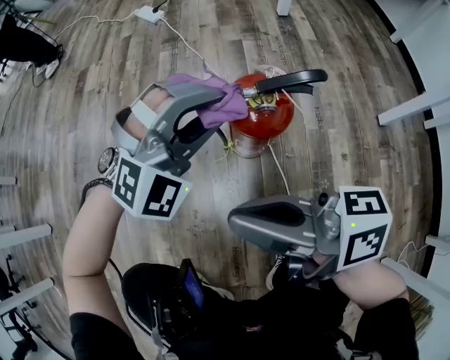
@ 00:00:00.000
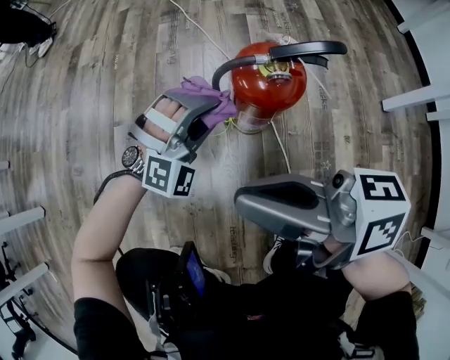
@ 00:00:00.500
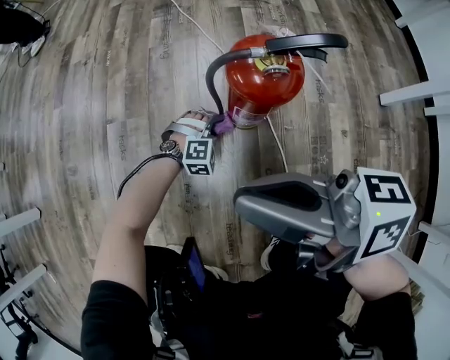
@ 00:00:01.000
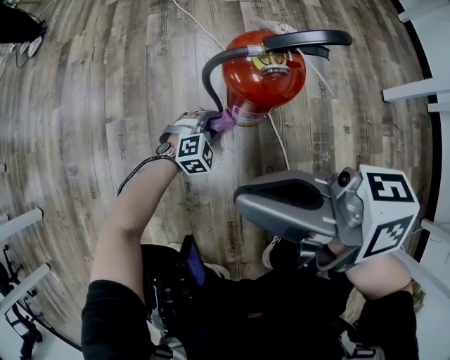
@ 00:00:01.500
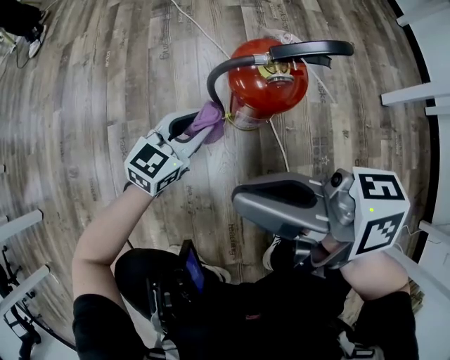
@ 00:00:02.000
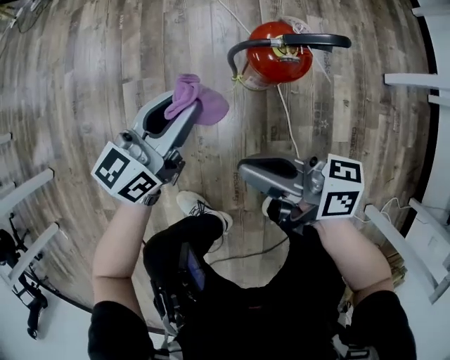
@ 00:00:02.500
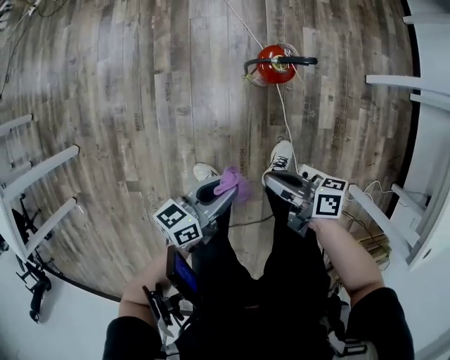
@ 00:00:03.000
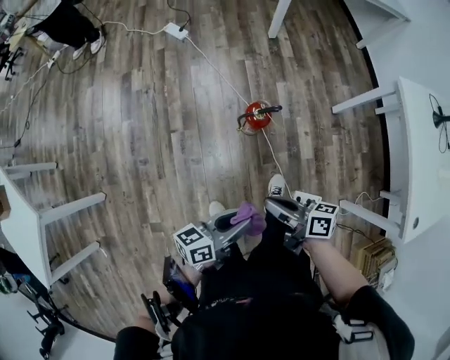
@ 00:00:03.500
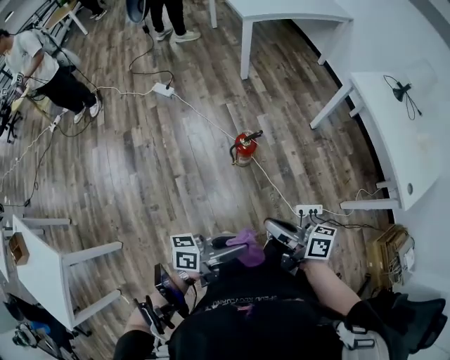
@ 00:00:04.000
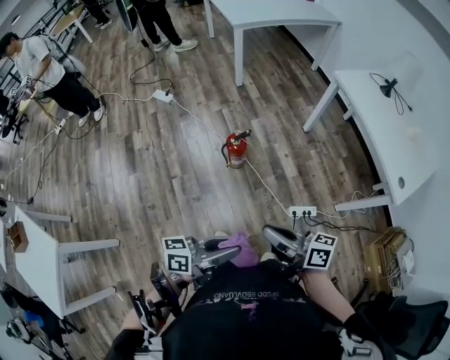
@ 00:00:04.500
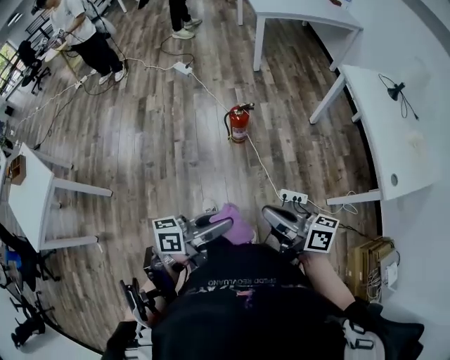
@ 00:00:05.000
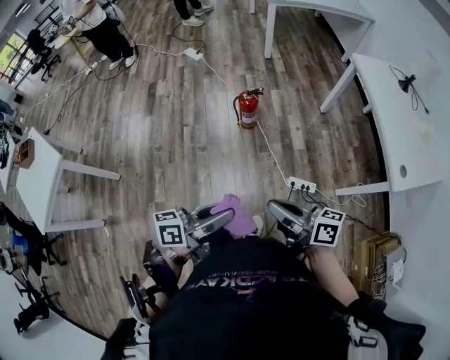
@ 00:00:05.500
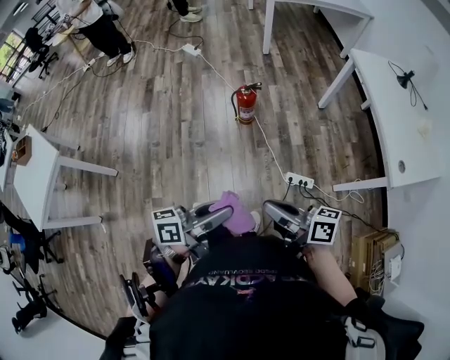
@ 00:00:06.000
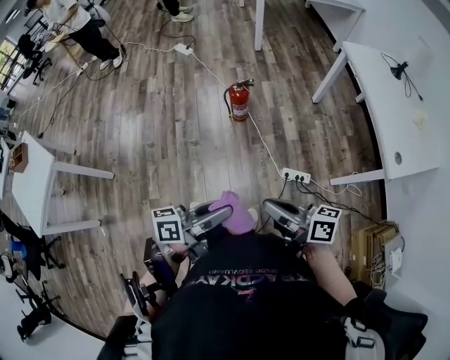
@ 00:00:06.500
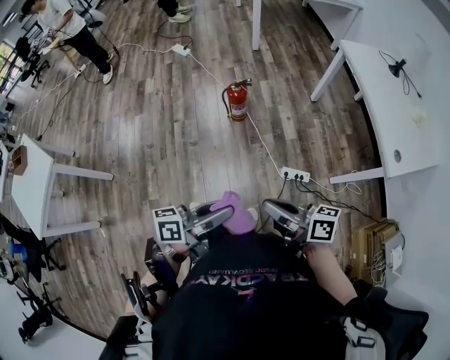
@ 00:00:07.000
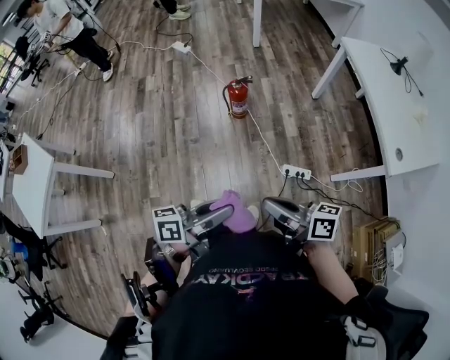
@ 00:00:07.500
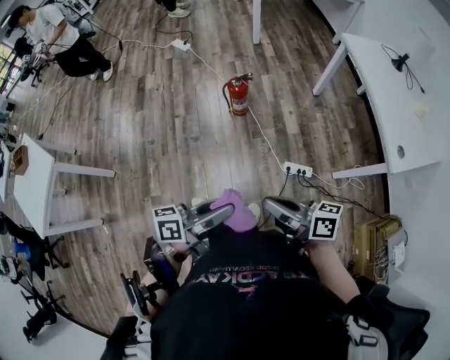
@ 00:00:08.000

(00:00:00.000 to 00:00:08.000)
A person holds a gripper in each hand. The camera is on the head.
00:00:00.000 - 00:00:02.000: The left gripper is displaced downward by about 20 cm, and rolls counterclockwise, seen from behind, by roughly 70 degrees.
00:00:02.000 - 00:00:04.000: The right gripper heads upward, covering about 40 cm, and changes its angle by about 30 degrees. The left gripper heads upward, covering about 60 cm, and changes its angle by about 70 degrees.
00:00:04.000 - 00:00:06.000: Both grippers move backward and to the right, about 25 cm. The left gripper rotates about 20 degrees.
00:00:06.000 - 00:00:08.000: The grippers stay close to where they were, moving slightly.

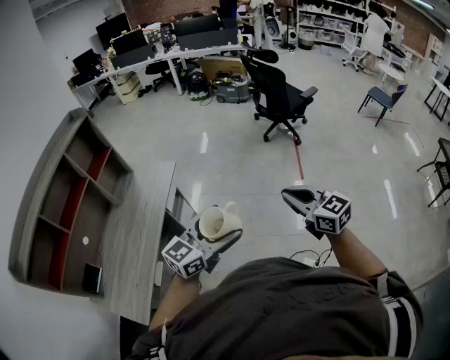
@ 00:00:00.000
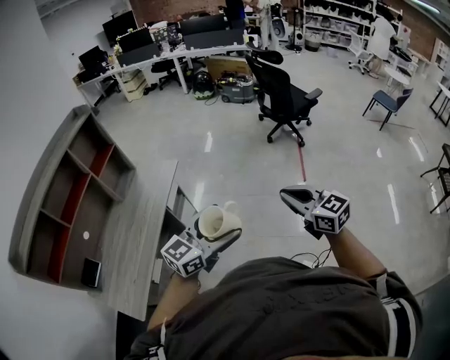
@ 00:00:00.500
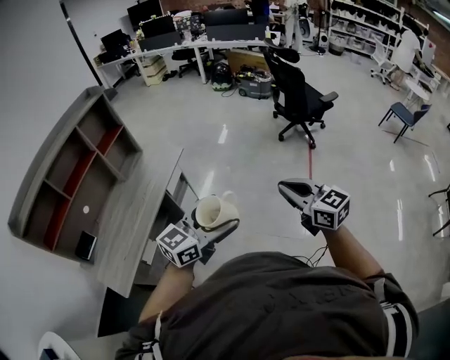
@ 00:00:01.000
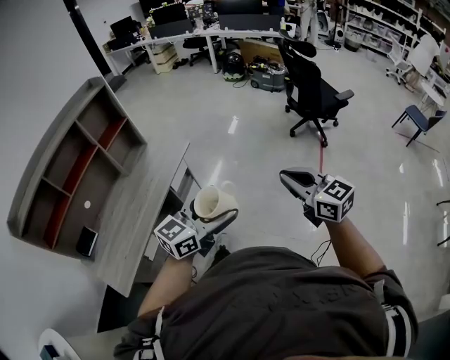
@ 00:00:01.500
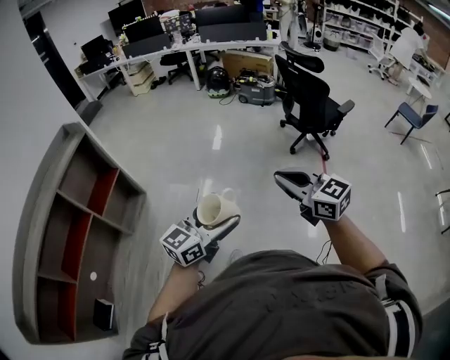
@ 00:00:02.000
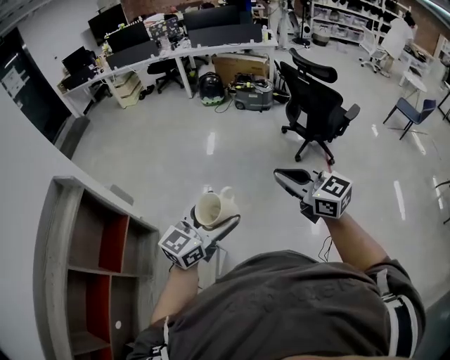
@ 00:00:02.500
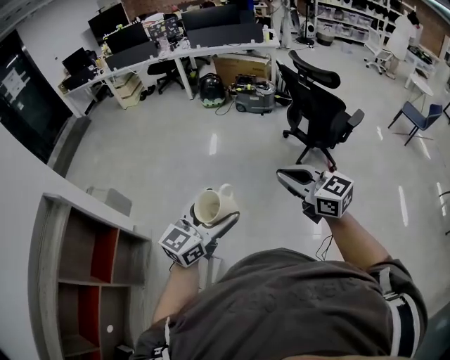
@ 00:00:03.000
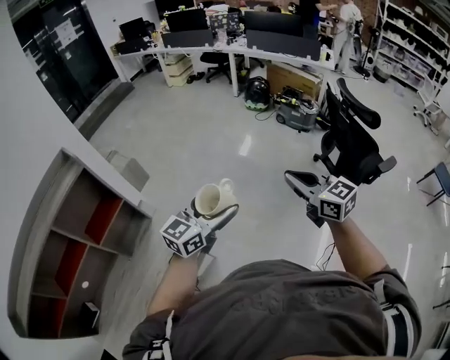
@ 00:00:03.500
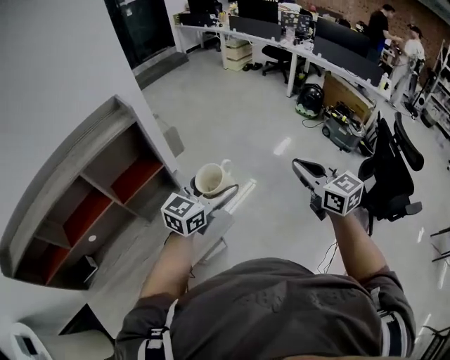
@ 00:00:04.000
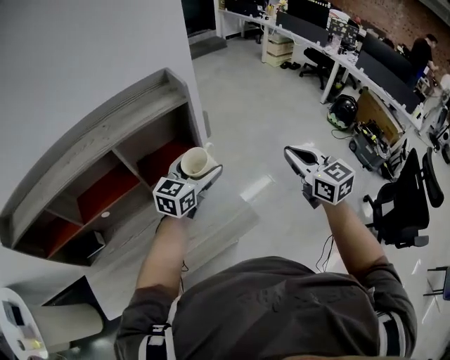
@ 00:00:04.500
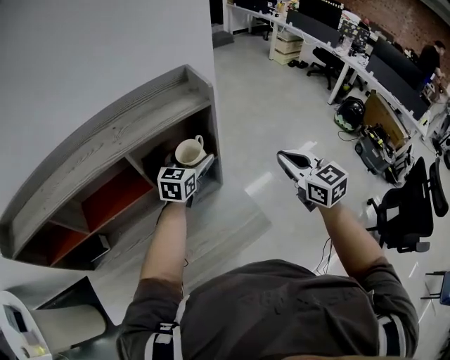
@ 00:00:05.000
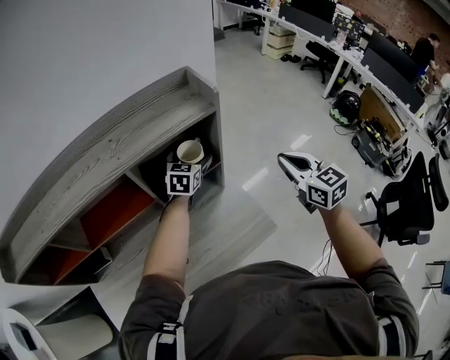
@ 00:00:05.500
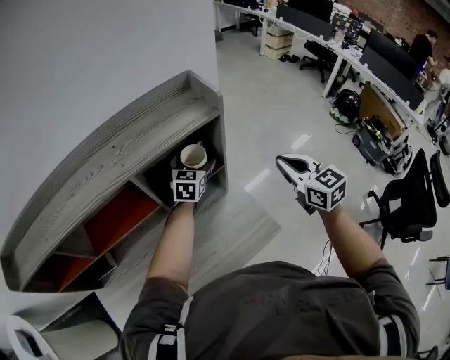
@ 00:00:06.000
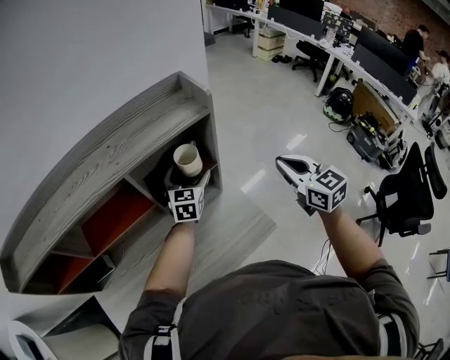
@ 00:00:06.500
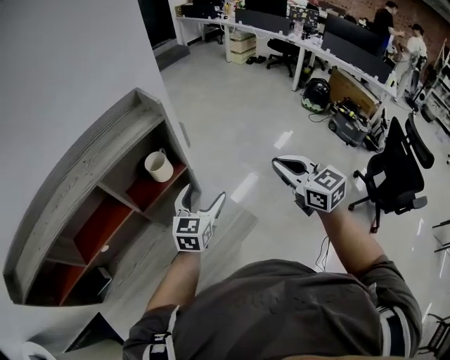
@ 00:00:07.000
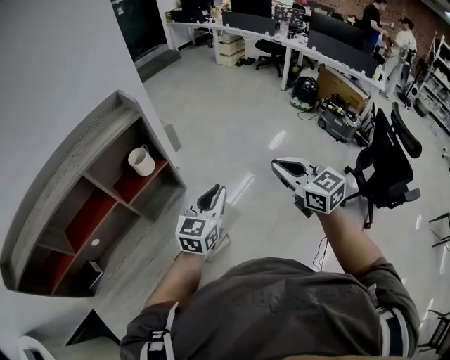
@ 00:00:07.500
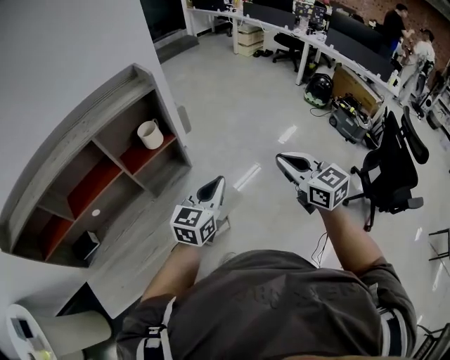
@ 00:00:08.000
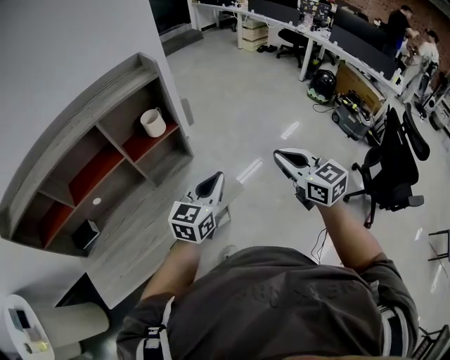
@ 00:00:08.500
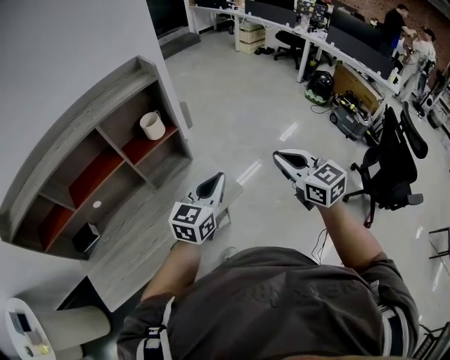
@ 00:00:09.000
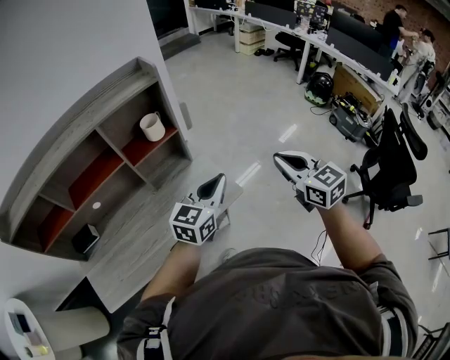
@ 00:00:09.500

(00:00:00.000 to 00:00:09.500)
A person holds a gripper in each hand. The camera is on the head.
00:00:00.000 - 00:00:02.000: The two grippers go roughly 35 cm forward and to the left.
00:00:02.000 - 00:00:04.000: The left gripper shifts by some 35 cm, and rotates some 40 degrees. Meanwhile the right gripper shifts by roughly 40 cm, and swivels roughly 20 degrees.
00:00:04.000 - 00:00:05.500: The grippers both shift to the left and forward by roughly 35 cm. The left gripper swivels approximately 40 degrees.
00:00:05.500 - 00:00:07.500: The right gripper goes about 25 cm backward and to the right, while the left gripper goes some 35 cm backward and to the right, rotates roughly 30 degrees, and closes.
00:00:07.500 - 00:00:09.500: Both grippers travel together backward, about 5 cm.

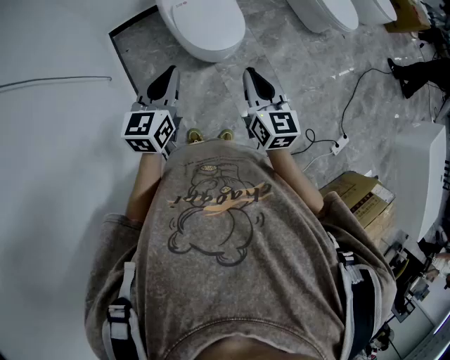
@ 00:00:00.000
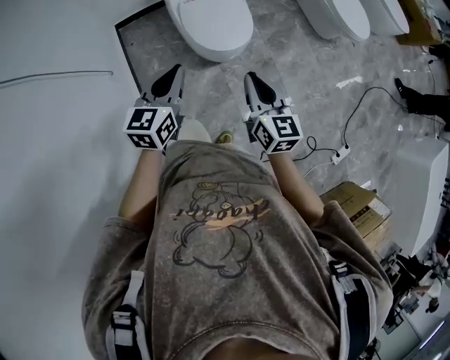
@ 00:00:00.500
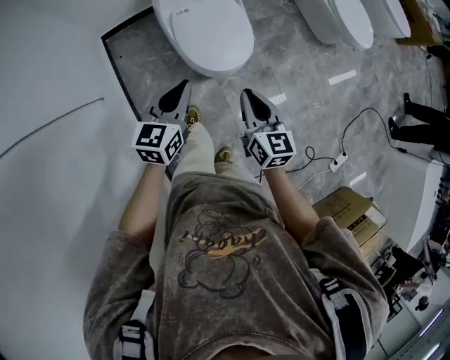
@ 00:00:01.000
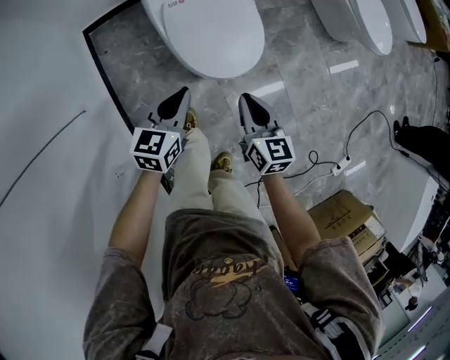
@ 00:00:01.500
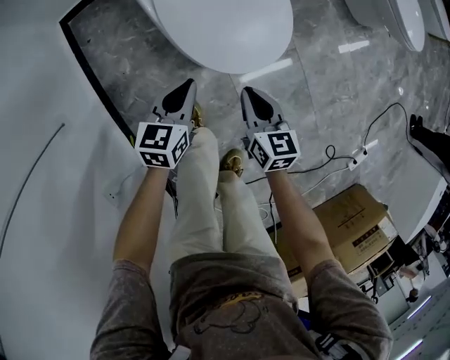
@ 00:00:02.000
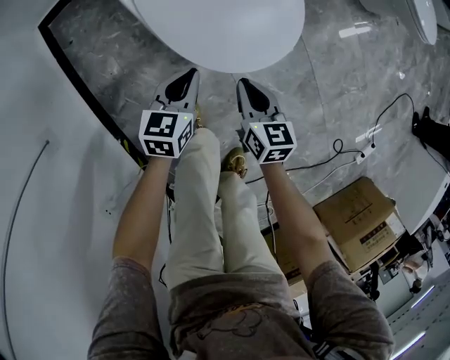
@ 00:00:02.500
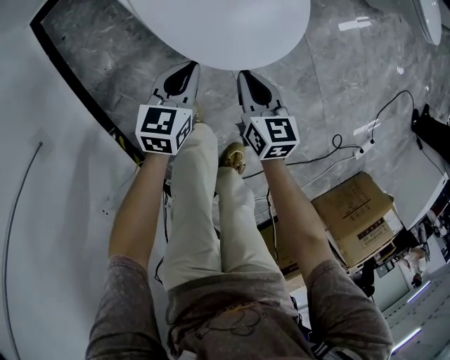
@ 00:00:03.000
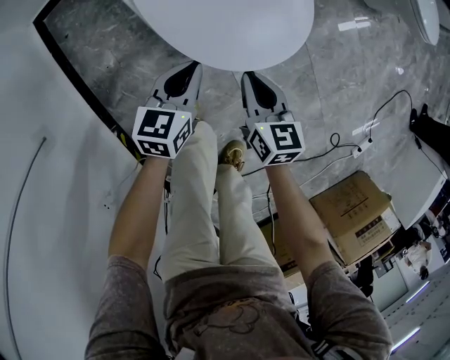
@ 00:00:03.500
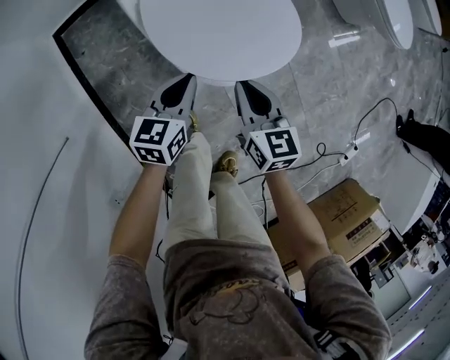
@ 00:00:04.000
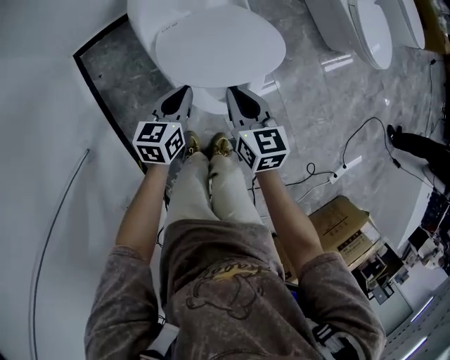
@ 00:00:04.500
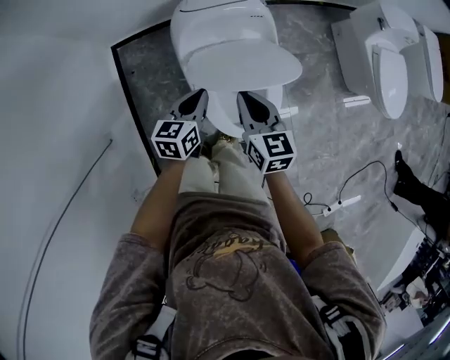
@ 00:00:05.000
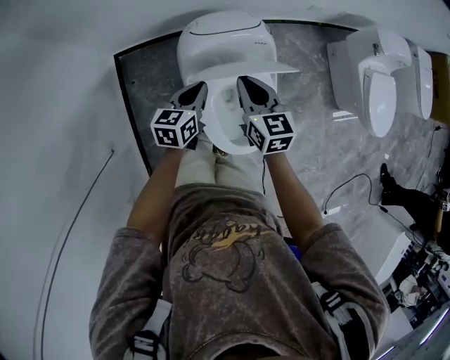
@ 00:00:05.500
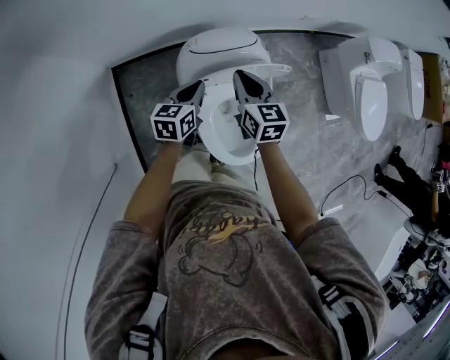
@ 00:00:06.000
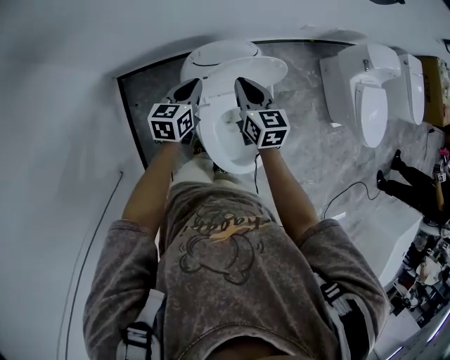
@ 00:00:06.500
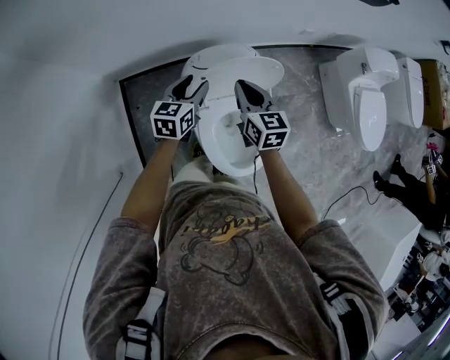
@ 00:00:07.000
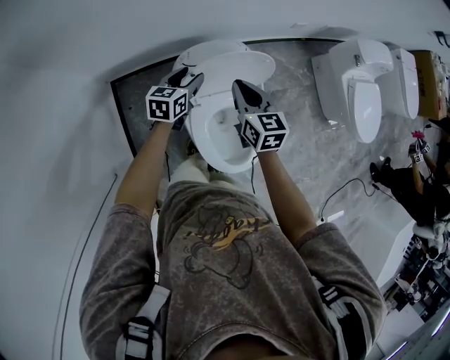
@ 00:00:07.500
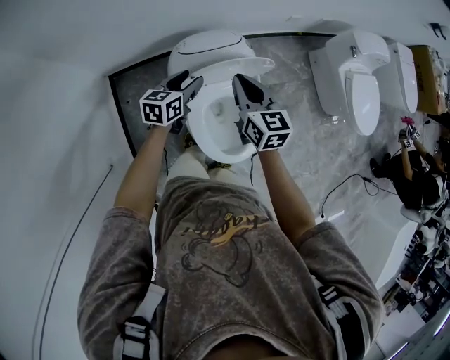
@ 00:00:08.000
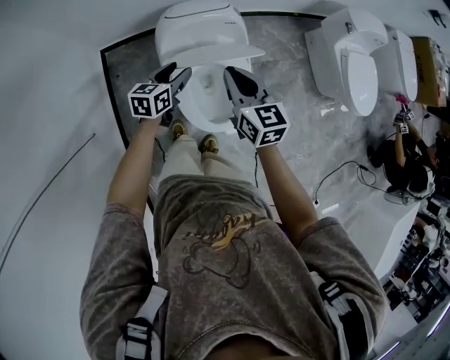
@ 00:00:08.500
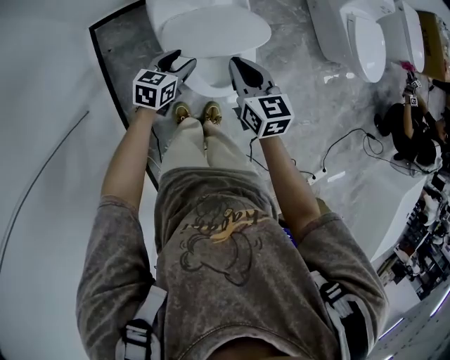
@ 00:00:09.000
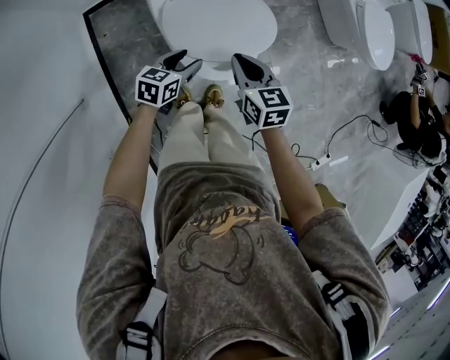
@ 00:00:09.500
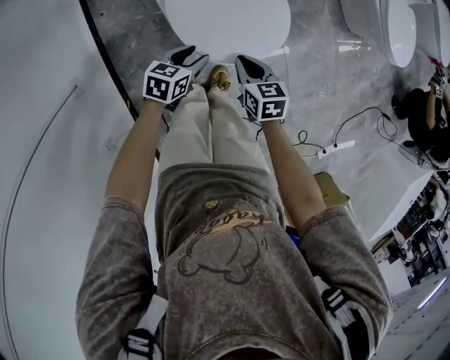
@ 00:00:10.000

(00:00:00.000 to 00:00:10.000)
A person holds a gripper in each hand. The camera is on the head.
00:00:00.000 - 00:00:02.000: The grippers both shift downward and forward by approximately 50 cm. The right gripper swivels approximately 20 degrees, while the left gripper swivels approximately 20 degrees.
00:00:02.000 - 00:00:04.000: The right gripper travels upward and forward by approximately 10 cm, while the left gripper goes approximately 5 cm forward, and goes downward and returns, some 10 cm each way.
00:00:04.000 - 00:00:06.000: The left gripper moves forward, upward and to the left, about 35 cm; the right gripper goes some 40 cm forward and upward.
00:00:06.000 - 00:00:08.000: The right gripper goes roughly 10 cm upward and backward. The left gripper opens.
00:00:08.000 - 00:00:10.000: The right gripper travels downward and backward by about 40 cm, and turns by some 30 degrees. Meanwhile the left gripper moves backward and downward, about 35 cm, and swivels approximately 20 degrees.
